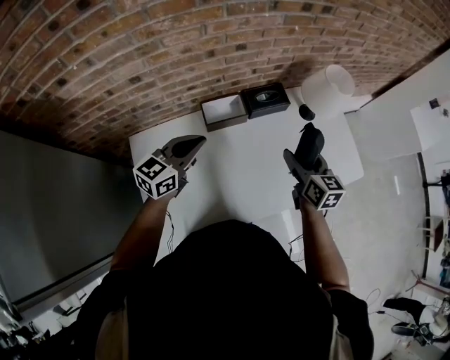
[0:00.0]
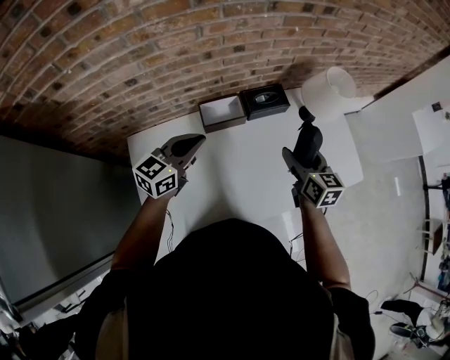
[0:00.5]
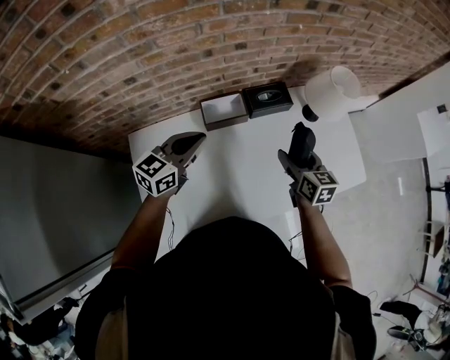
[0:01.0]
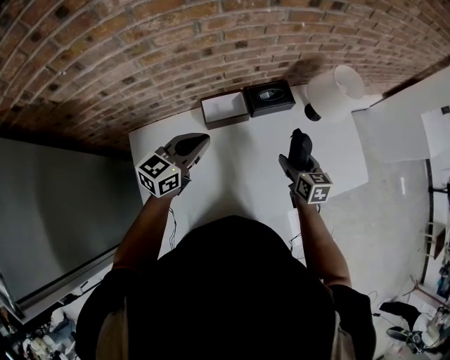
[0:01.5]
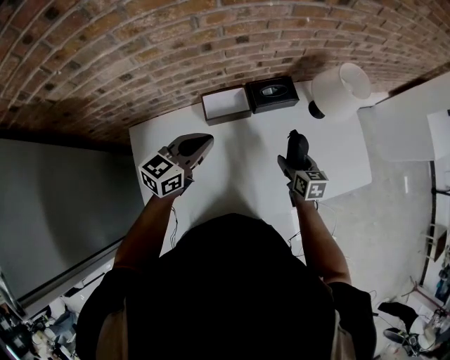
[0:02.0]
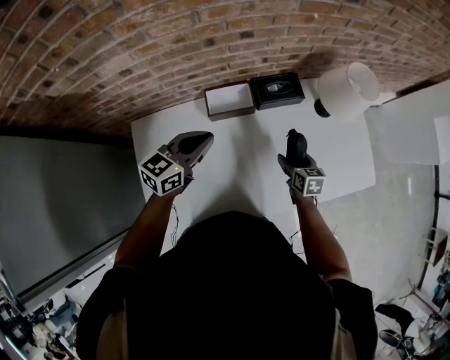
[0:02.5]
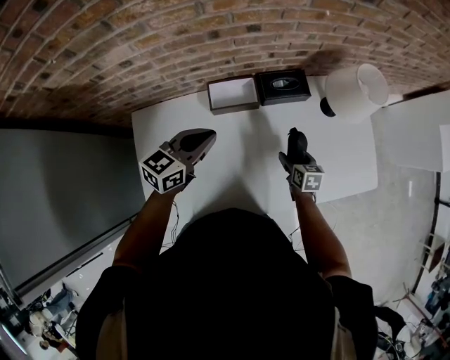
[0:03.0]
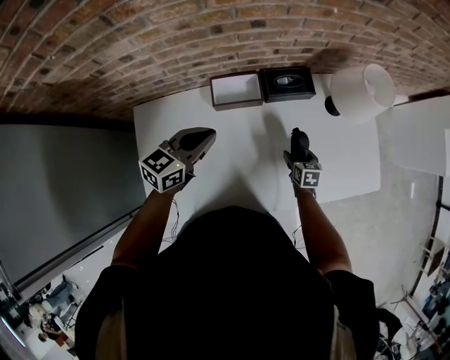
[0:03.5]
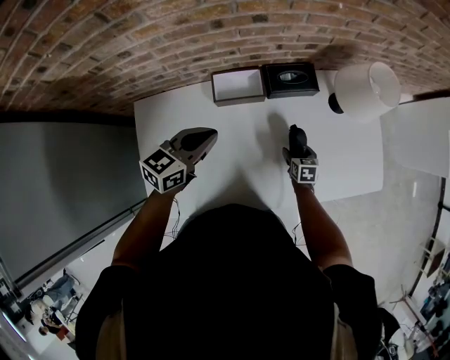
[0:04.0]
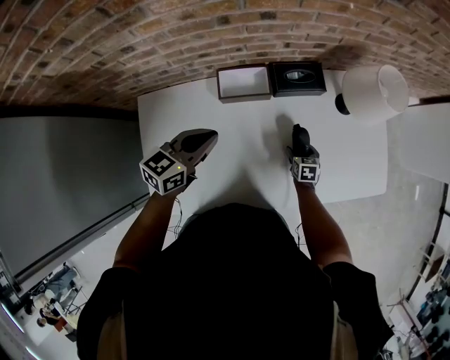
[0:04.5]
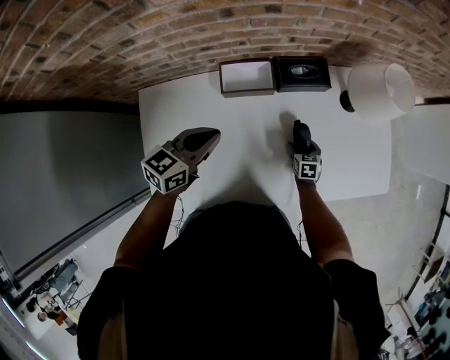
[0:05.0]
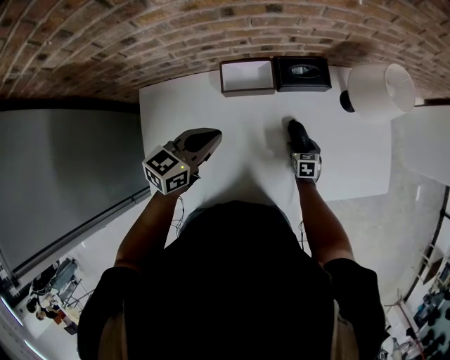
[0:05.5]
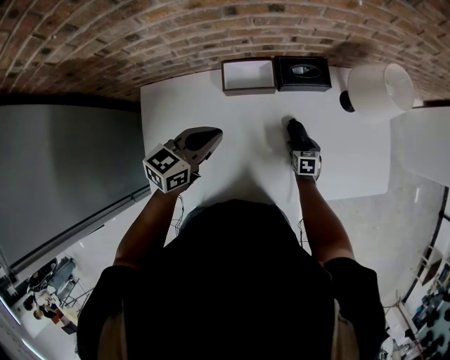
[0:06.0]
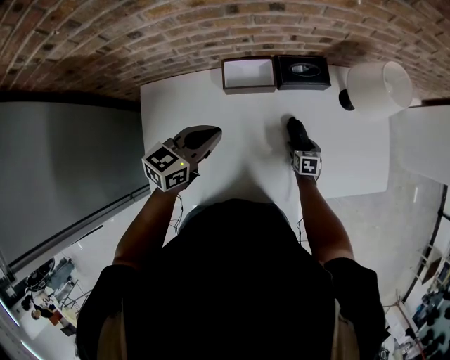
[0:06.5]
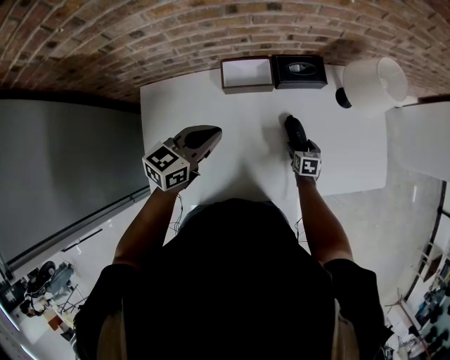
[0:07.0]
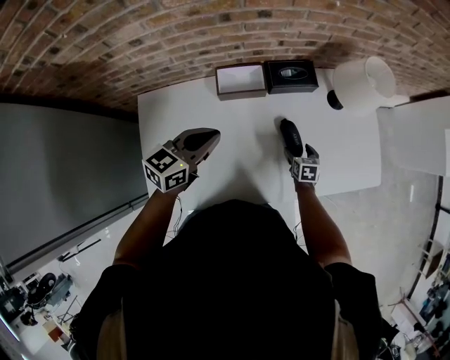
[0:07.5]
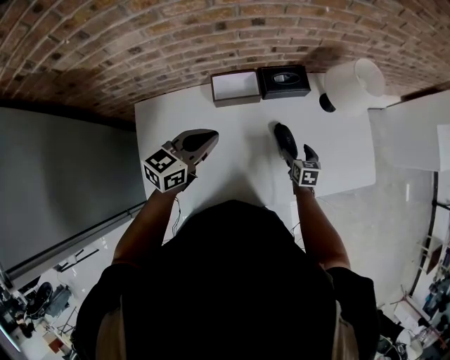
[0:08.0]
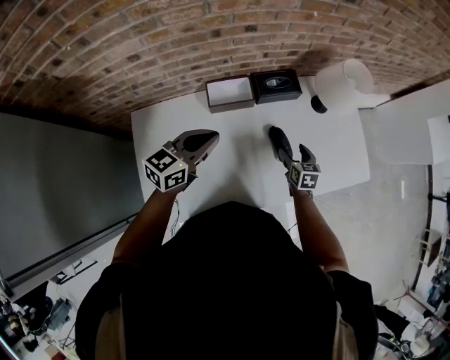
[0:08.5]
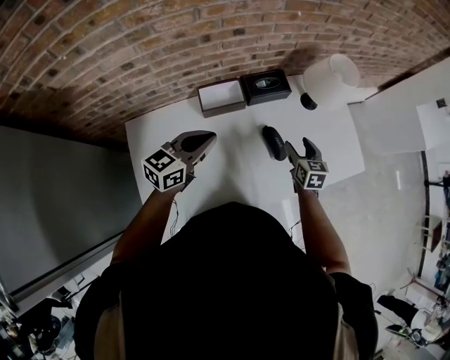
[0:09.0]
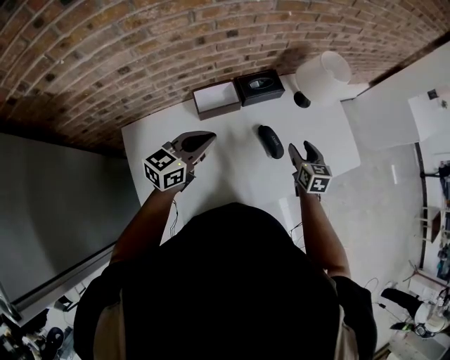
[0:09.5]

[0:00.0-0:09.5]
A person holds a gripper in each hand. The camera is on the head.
0:00.0 to 0:02.0: The left gripper shifts by roughly 5 cm; the right gripper goes about 15 cm downward.
0:02.0 to 0:04.0: The right gripper travels downward by about 20 cm.
0:04.0 to 0:05.5: The grippers stay close to where they were, moving slightly.
0:05.5 to 0:07.5: The right gripper heads upward, covering some 5 cm.
0:07.5 to 0:09.5: The right gripper travels upward by about 20 cm, swivels about 20 degrees, and closes up.

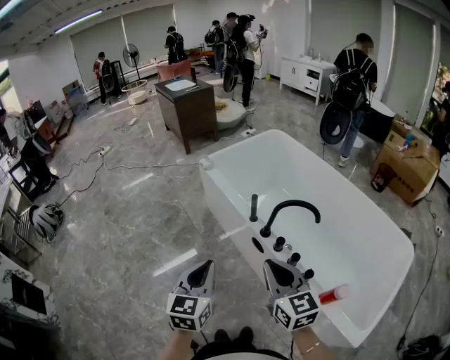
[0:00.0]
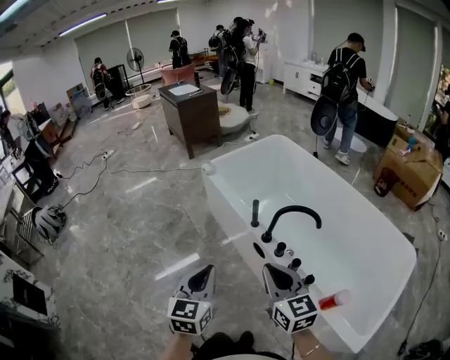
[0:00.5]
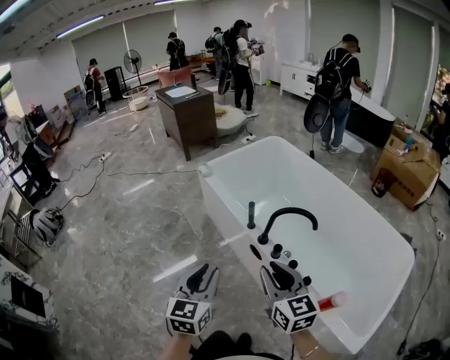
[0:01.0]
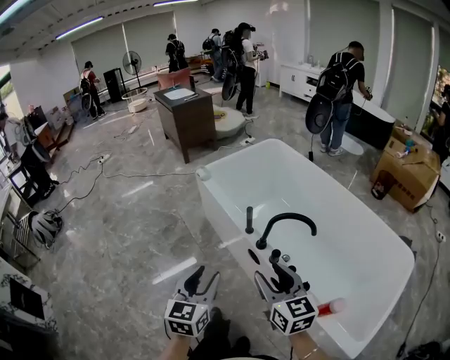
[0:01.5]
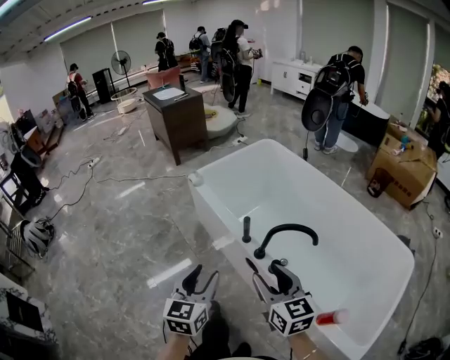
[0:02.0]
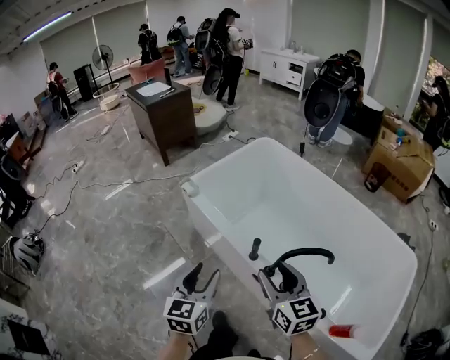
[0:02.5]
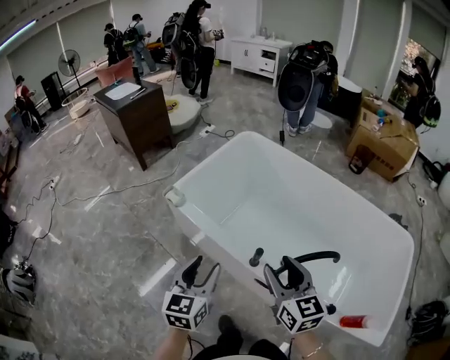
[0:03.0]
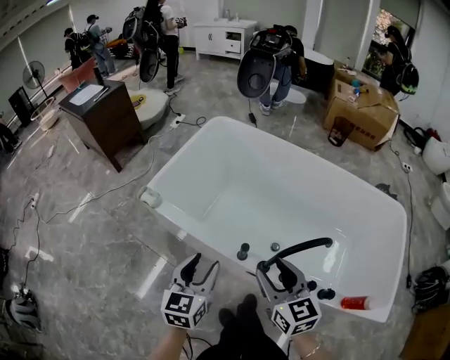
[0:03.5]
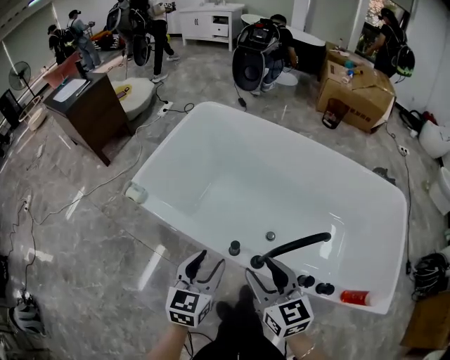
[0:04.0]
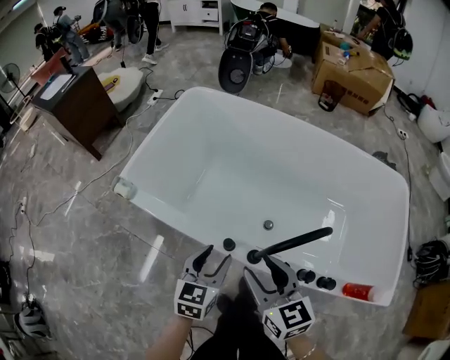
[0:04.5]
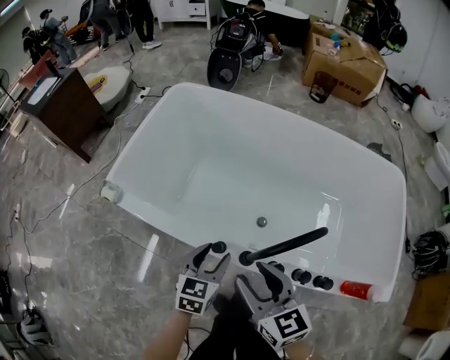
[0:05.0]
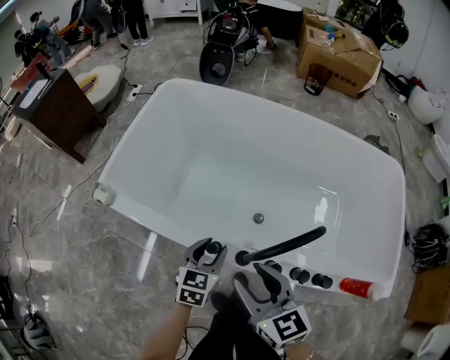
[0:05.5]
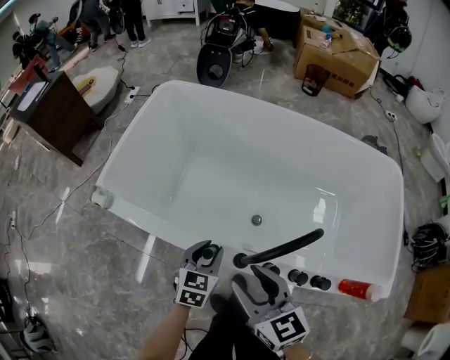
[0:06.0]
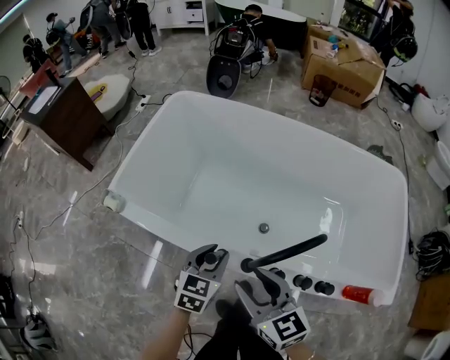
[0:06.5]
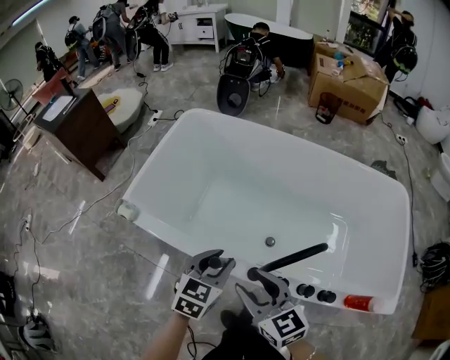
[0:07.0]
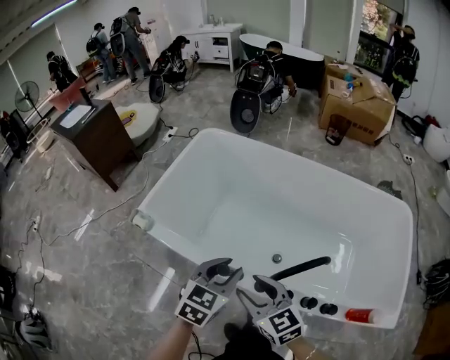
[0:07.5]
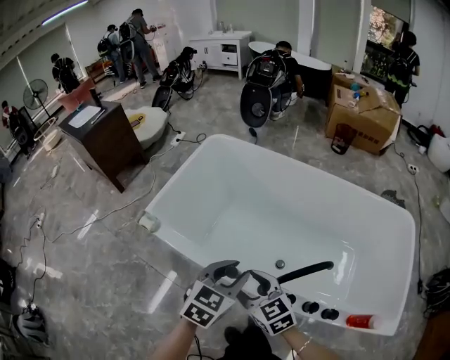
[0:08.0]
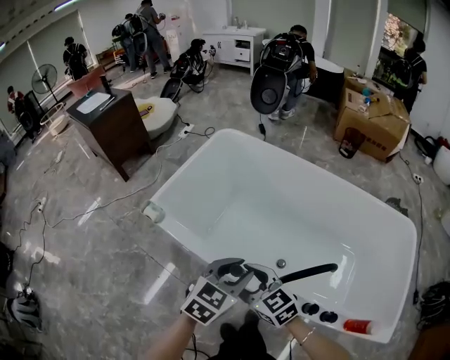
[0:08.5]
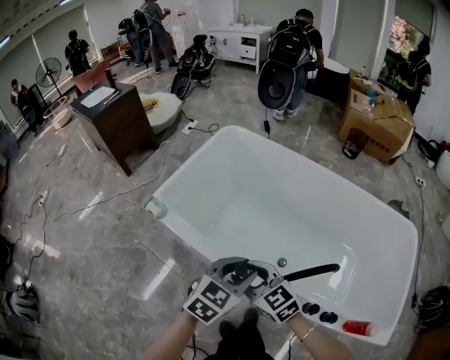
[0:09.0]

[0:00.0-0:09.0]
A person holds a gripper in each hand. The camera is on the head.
0:00.0 to 0:02.0: The two grippers go some 15 cm forward. The left gripper opens, while the right gripper opens.
0:02.0 to 0:04.5: The left gripper moves roughly 50 cm, and rotates approximately 40 degrees, while the right gripper changes place by approximately 40 cm, and swivels roughly 30 degrees.
0:04.5 to 0:07.0: The left gripper goes downward and returns, some 10 cm each way.
0:07.0 to 0:09.0: The right gripper moves to the left, approximately 10 cm, and turns by about 30 degrees. Meanwhile the left gripper moves upward, some 10 cm.

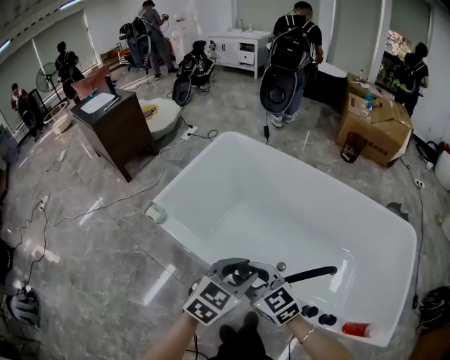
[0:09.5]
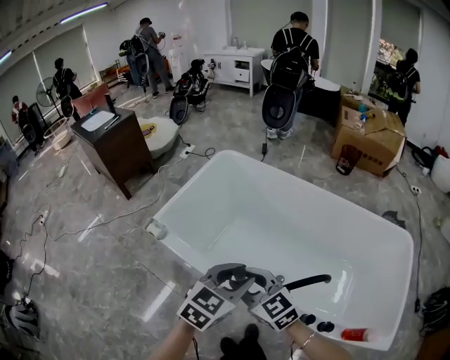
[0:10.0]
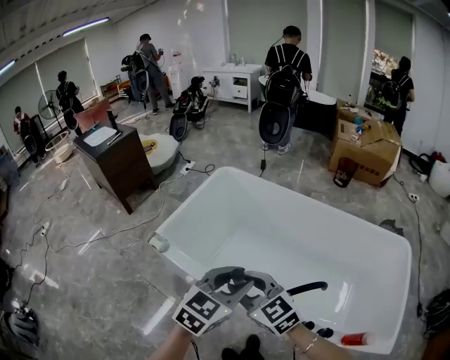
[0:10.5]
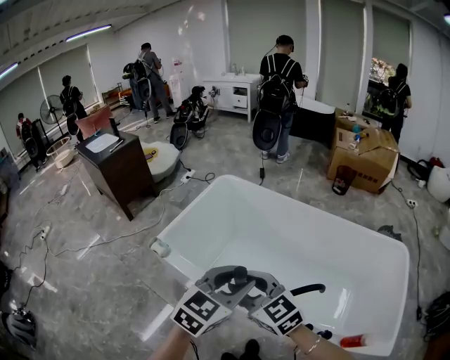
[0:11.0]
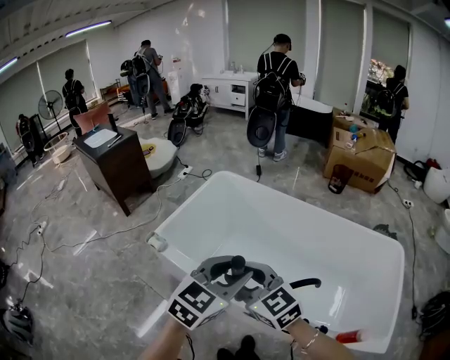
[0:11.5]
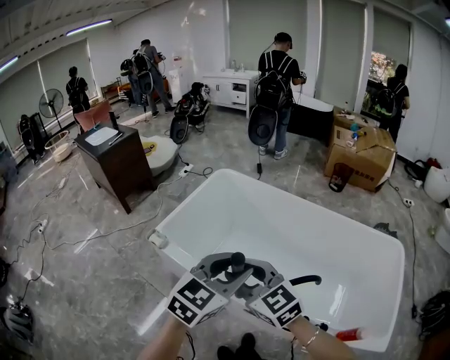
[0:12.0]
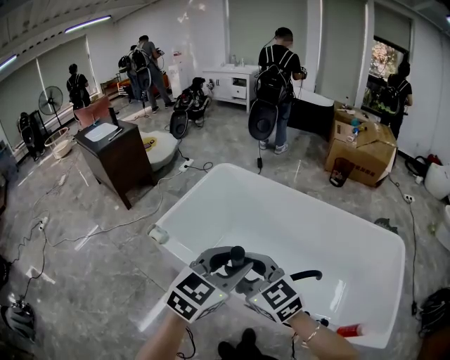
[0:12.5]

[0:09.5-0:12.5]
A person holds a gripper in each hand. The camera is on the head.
0:09.5 to 0:11.0: The grippers both shift upward by some 15 cm.
0:11.0 to 0:12.5: There are only small adjustments of the grippers.

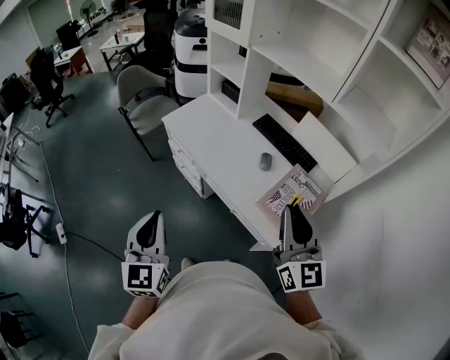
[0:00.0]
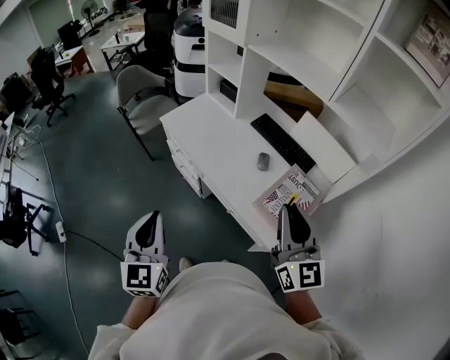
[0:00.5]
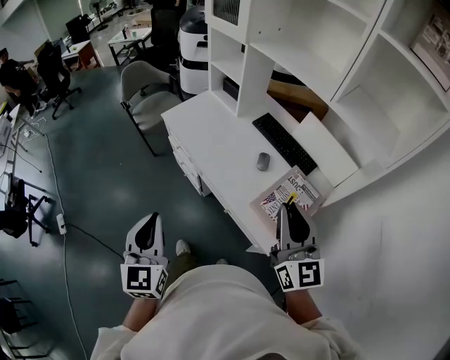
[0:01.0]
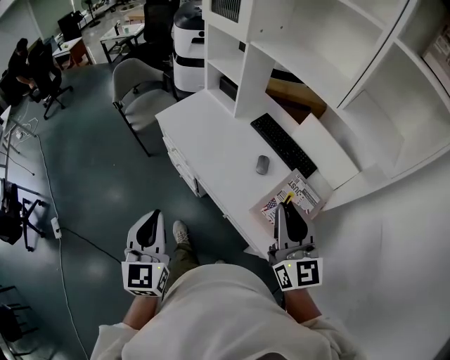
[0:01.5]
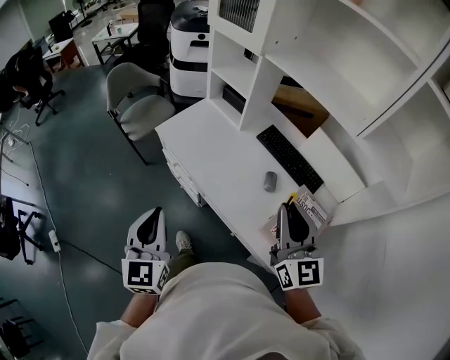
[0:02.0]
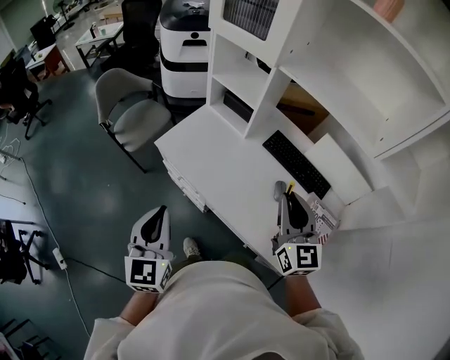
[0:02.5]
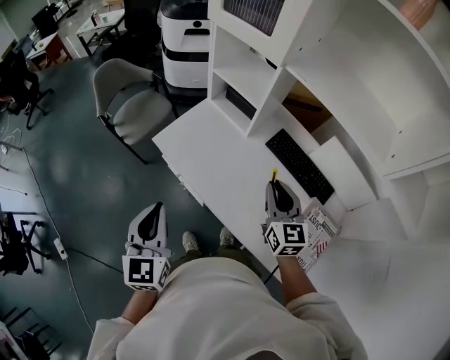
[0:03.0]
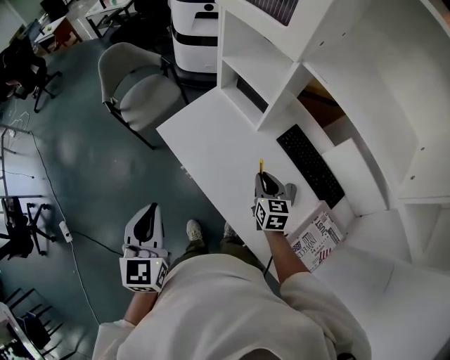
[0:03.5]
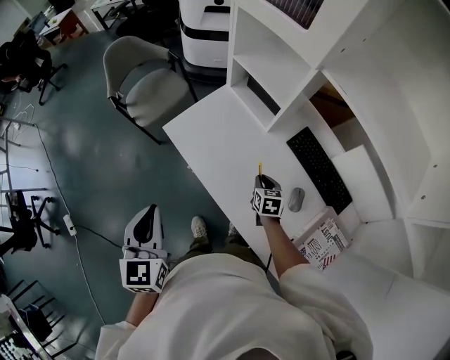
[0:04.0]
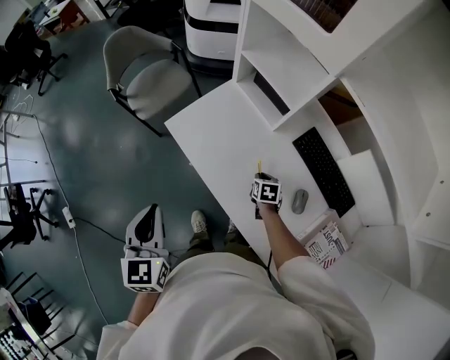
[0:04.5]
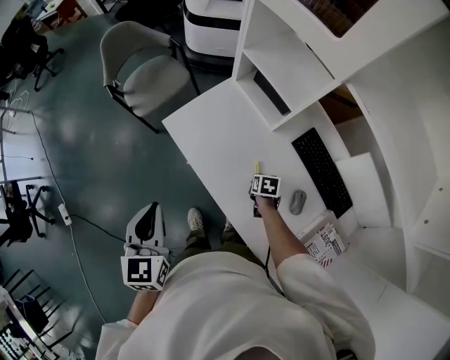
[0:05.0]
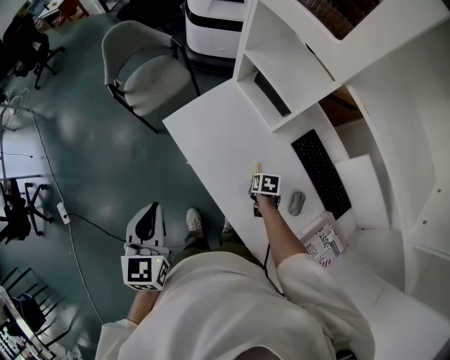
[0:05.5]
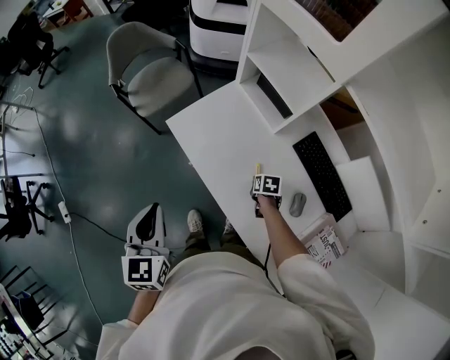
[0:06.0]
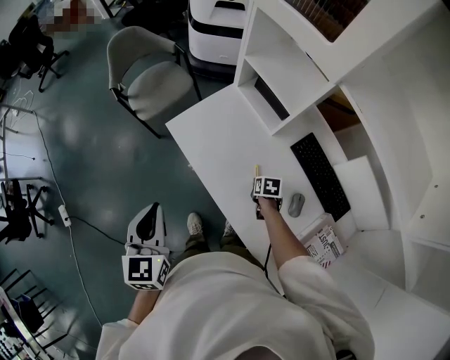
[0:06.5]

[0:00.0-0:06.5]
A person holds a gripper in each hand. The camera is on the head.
0:00.0 to 0:02.0: Both grippers travel together forward, approximately 15 cm.
0:02.0 to 0:04.5: The right gripper is displaced downward and forward by roughly 60 cm, and angles its fingers downward, by approximately 60 degrees, while the left gripper moves forward, about 20 cm.
0:04.5 to 0:06.5: The grippers stay close to where they were, moving slightly.
